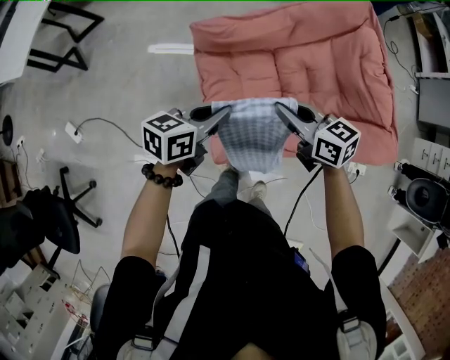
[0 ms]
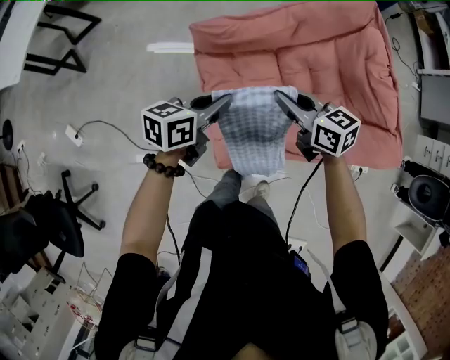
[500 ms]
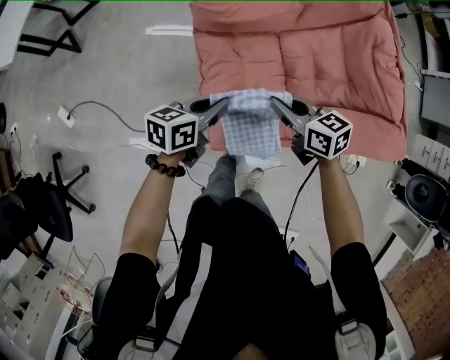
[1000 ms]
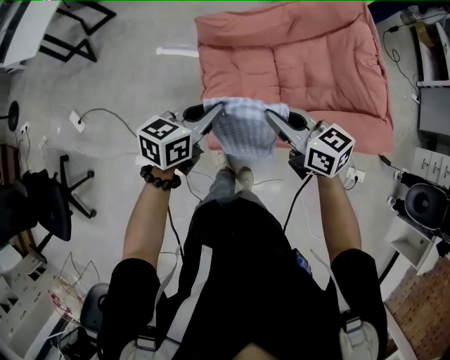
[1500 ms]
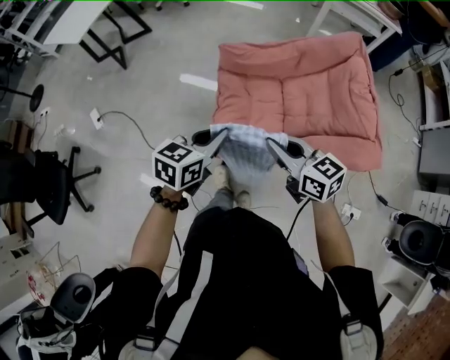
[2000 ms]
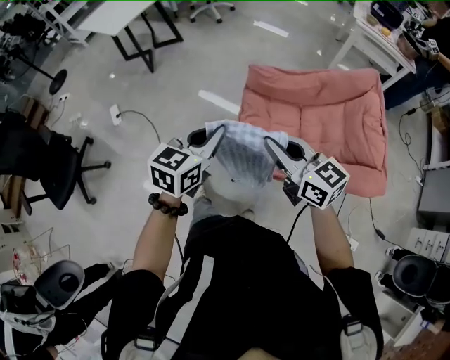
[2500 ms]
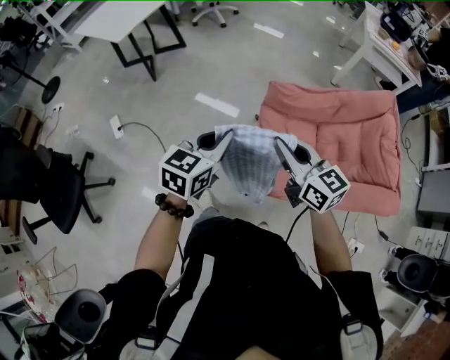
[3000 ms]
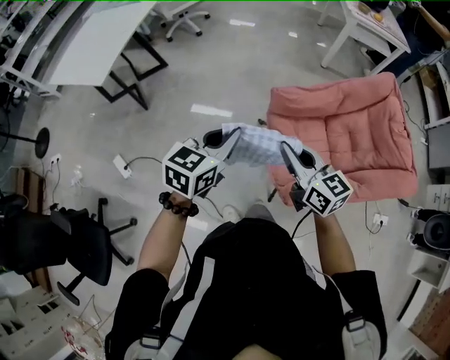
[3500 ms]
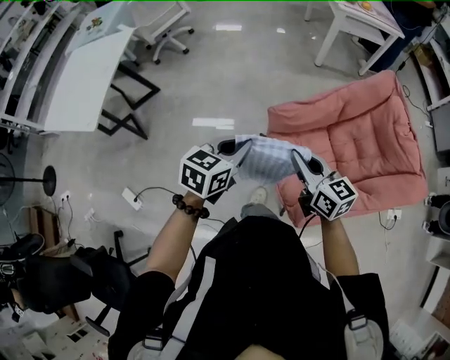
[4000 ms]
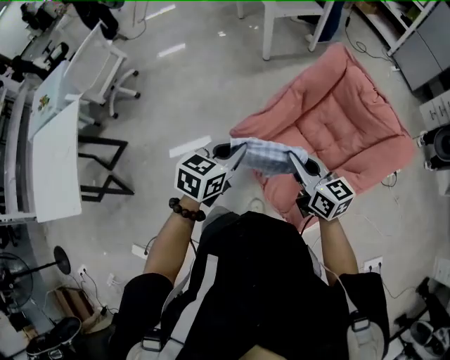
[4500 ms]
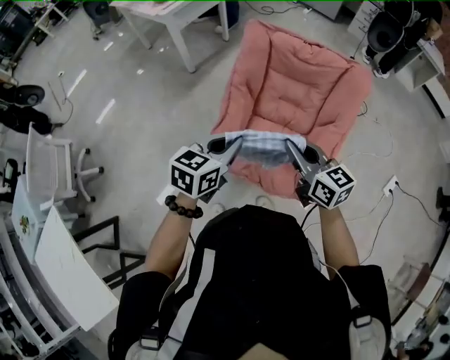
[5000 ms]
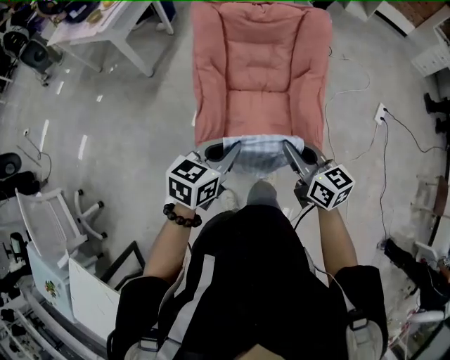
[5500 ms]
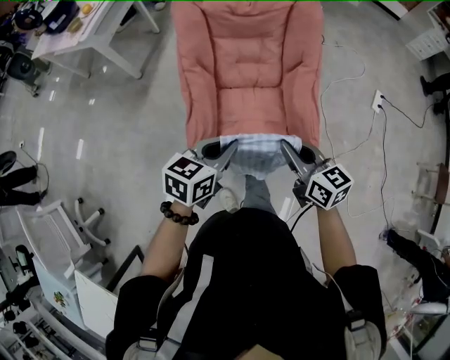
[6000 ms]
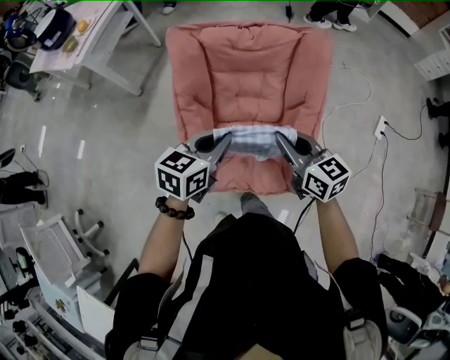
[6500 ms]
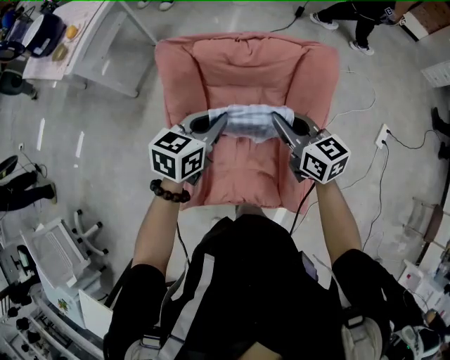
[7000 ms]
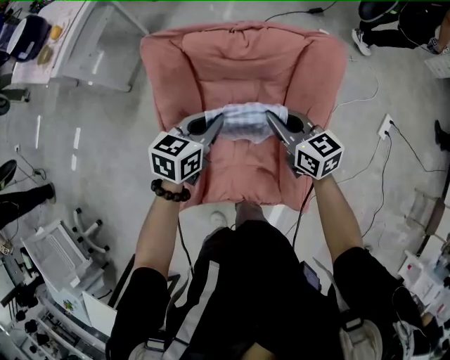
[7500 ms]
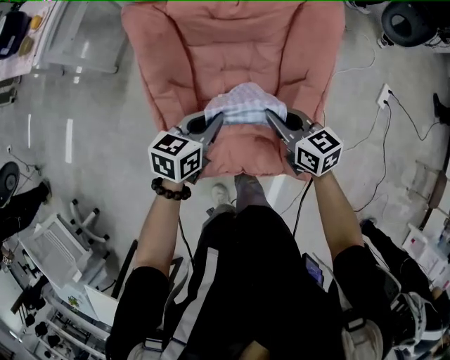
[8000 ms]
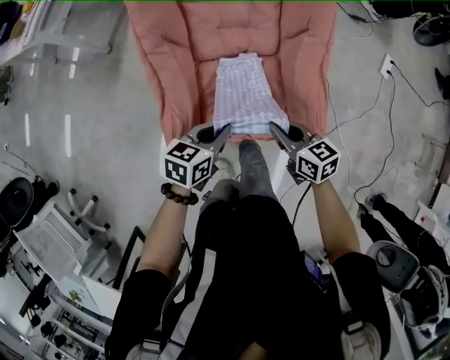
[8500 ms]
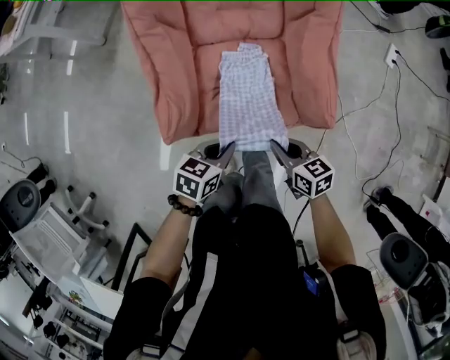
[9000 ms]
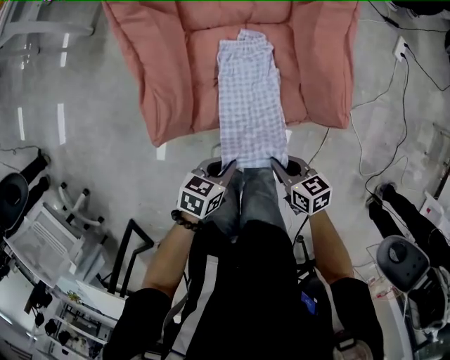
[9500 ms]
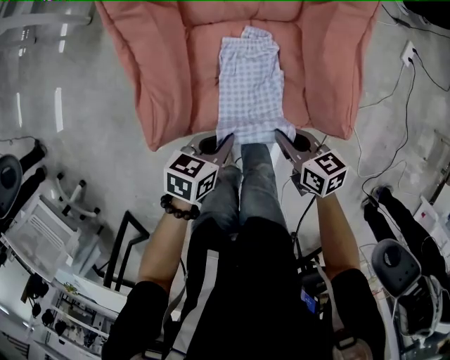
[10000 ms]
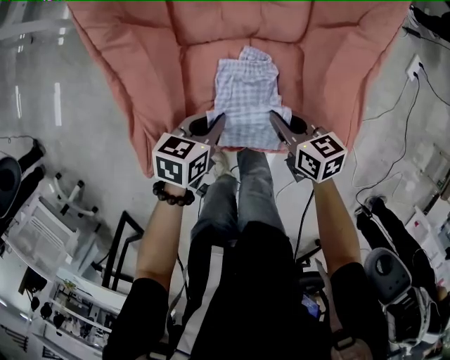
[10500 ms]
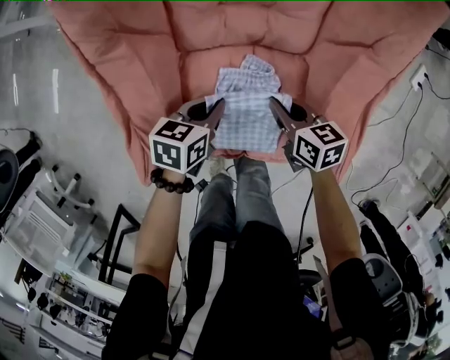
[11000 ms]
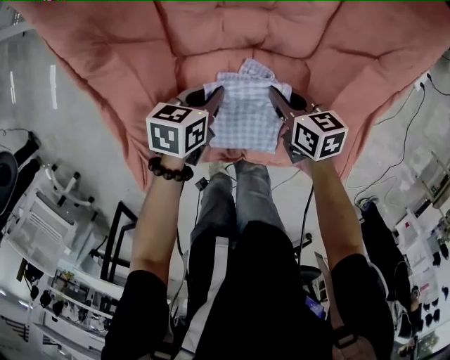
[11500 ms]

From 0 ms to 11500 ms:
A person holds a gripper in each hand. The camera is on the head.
From 0 ms to 2000 ms: The two grippers go approximately 20 cm backward and upward. The left gripper swivels about 20 degrees.
From 2000 ms to 4000 ms: The right gripper reaches about 10 cm upward, then returns, and turns by roughly 30 degrees; the left gripper shifts by about 40 cm.
From 4000 ms to 6000 ms: The right gripper turns by about 70 degrees, while the left gripper ends up roughly 20 cm from where it was, and swivels approximately 70 degrees.
From 6000 ms to 7500 ms: Both grippers travel together forward, some 40 cm.
From 7500 ms to 9500 ms: The two grippers travel together, backward, approximately 50 cm. The grippers both shift downward by some 30 cm. The right gripper swivels some 30 degrees. Meanwhile the left gripper rotates approximately 30 degrees.
From 9500 ms to 11500 ms: The grippers both shift forward by roughly 35 cm.

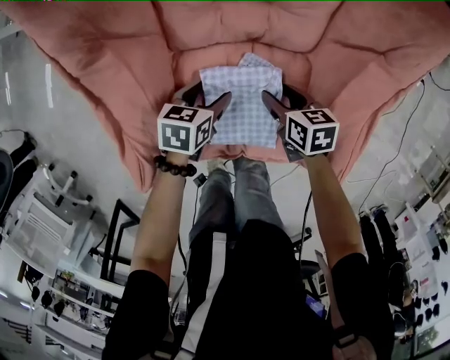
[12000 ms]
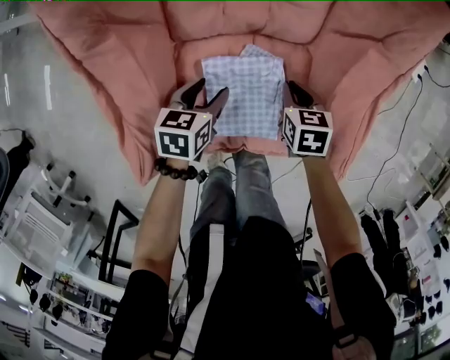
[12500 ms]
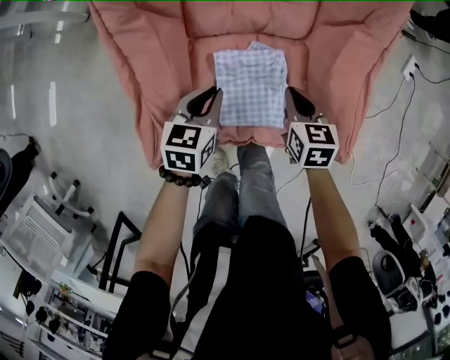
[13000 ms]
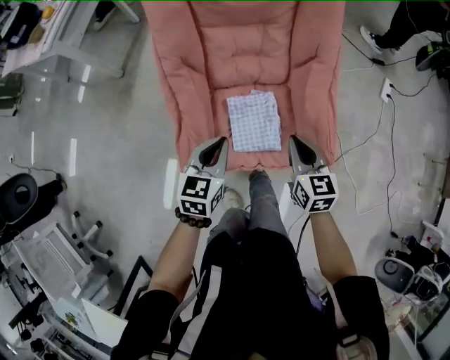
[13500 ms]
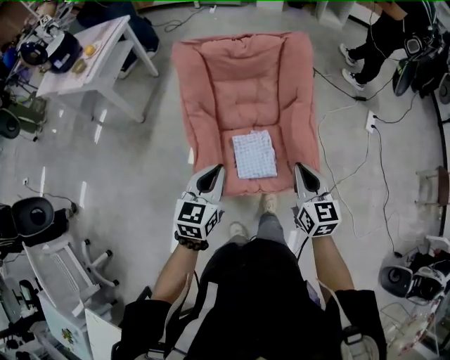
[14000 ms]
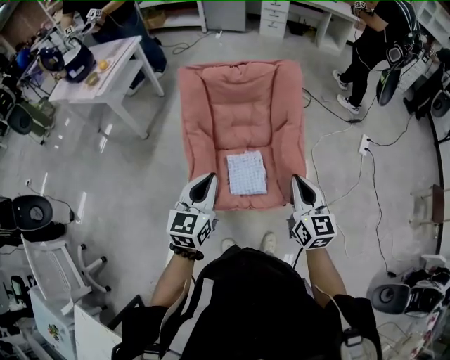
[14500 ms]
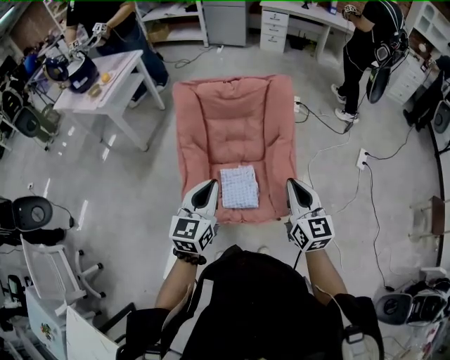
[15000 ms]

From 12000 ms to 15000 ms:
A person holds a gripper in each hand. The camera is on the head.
From 12000 ms to 13500 ms: The grippers both shift upward and backward by about 35 cm. The right gripper changes its angle by some 40 degrees, and closes its fingers, while the left gripper changes its angle by about 40 degrees, and closes.
From 13500 ms to 15000 ms: Both grippers travel together upward, about 30 cm. The left gripper swivels about 20 degrees, while the right gripper rotates approximately 20 degrees.

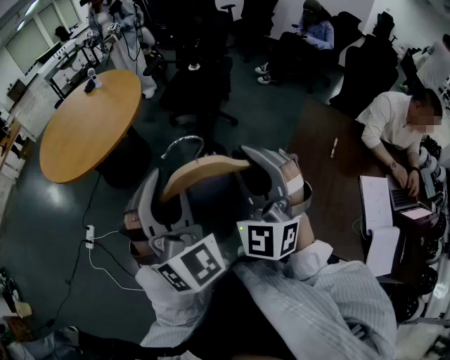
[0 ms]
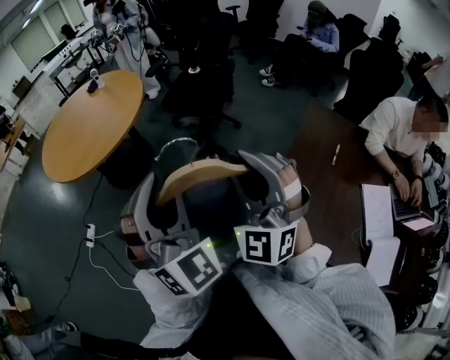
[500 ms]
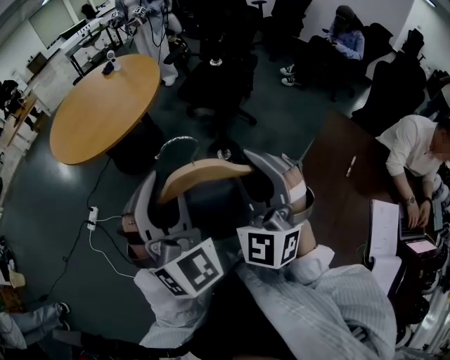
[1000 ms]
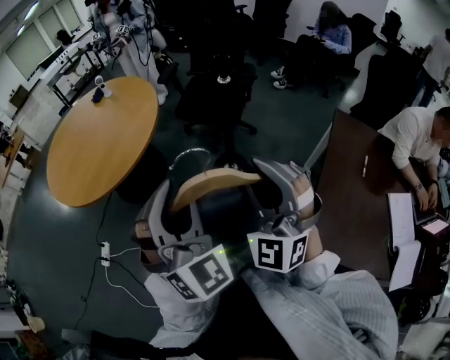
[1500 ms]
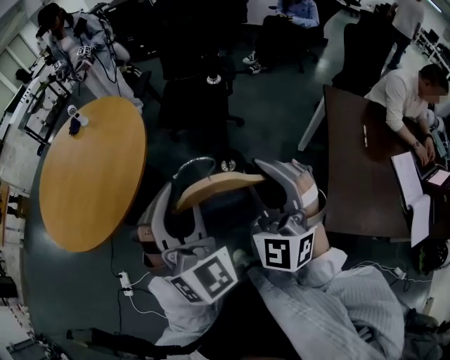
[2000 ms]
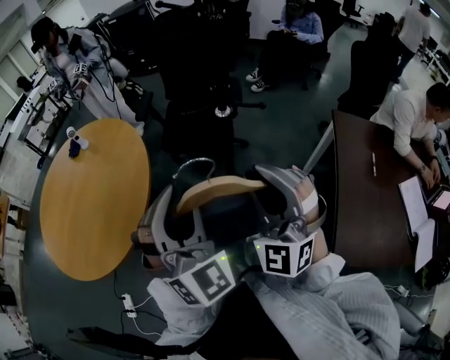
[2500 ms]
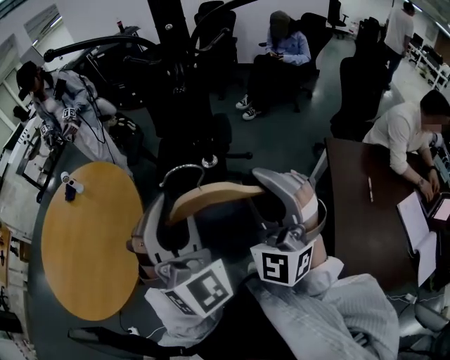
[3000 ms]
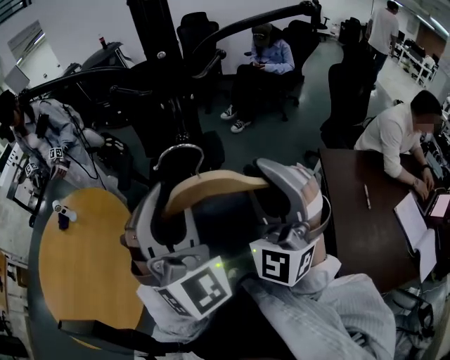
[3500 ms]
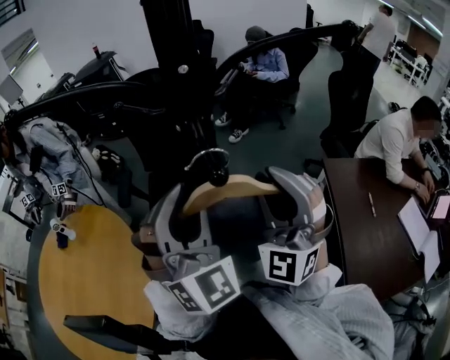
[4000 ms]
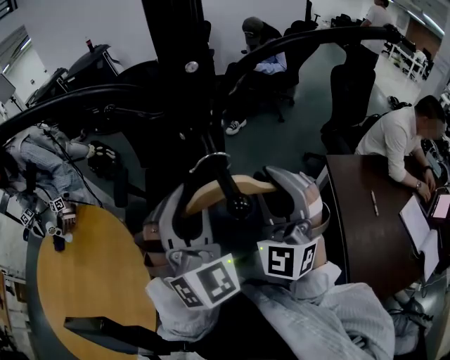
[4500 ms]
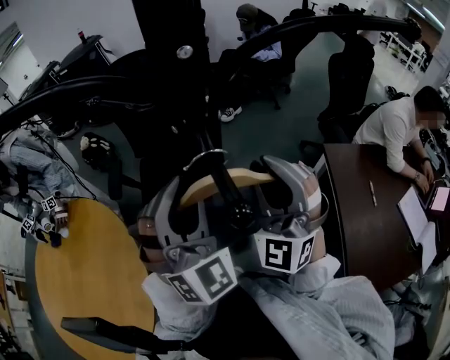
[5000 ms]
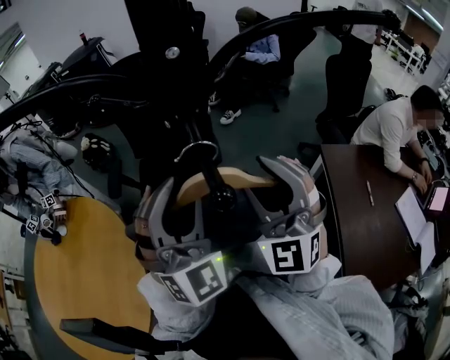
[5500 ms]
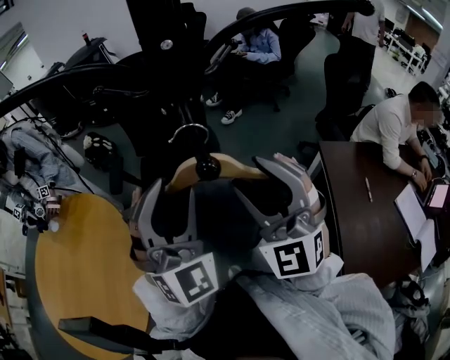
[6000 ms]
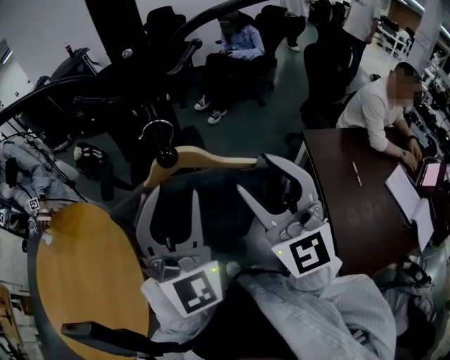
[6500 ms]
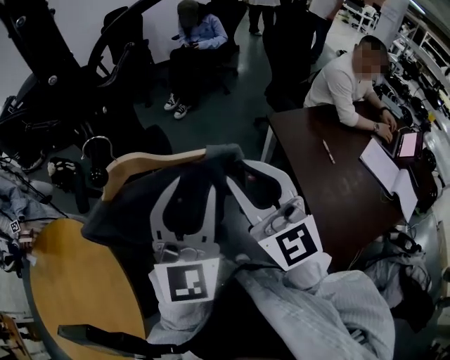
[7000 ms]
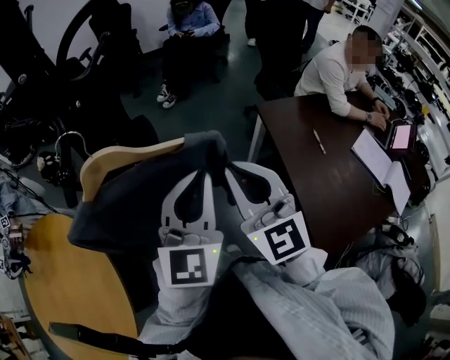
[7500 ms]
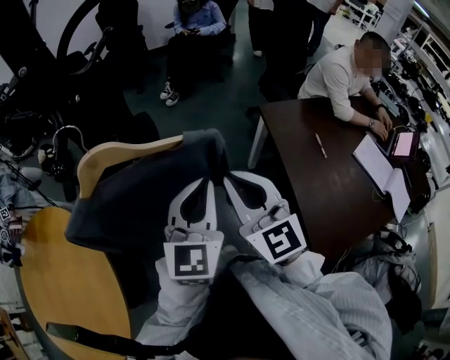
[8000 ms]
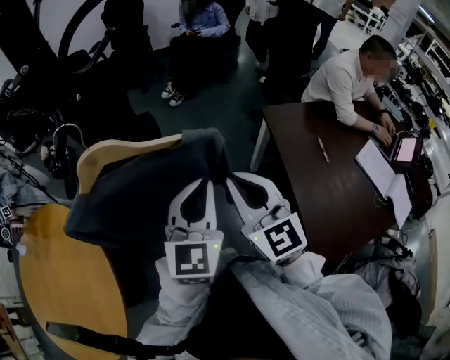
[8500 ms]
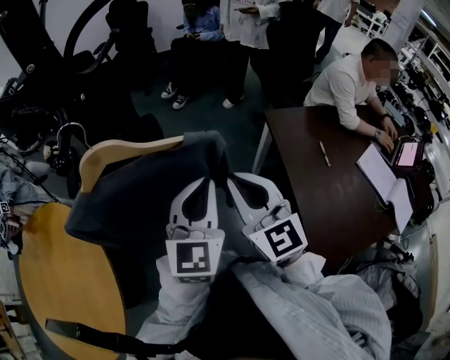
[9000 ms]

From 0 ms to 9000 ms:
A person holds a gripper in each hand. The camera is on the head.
From 0 ms to 2000 ms: The pair of grippers is taken forward and to the left, approximately 40 cm.
From 2000 ms to 4500 ms: Both grippers are carried forward, roughly 60 cm. The right gripper rotates some 20 degrees.
From 4500 ms to 7000 ms: Both grippers travel together to the right and backward, roughly 20 cm. The right gripper twists approximately 40 degrees clockwise, seen from behind, and opens and closes again, while the left gripper rotates about 40 degrees.
From 7000 ms to 9000 ms: The two grippers go about 10 cm downward. The left gripper closes its fingers. Meanwhile the right gripper closes its fingers.

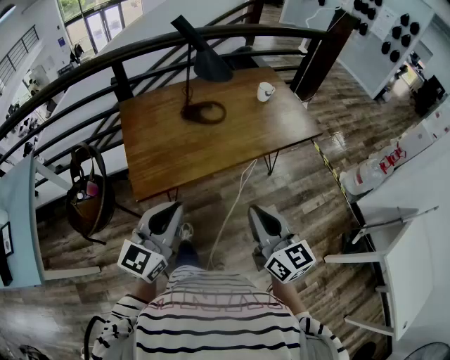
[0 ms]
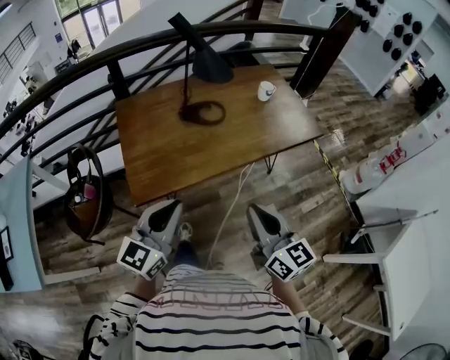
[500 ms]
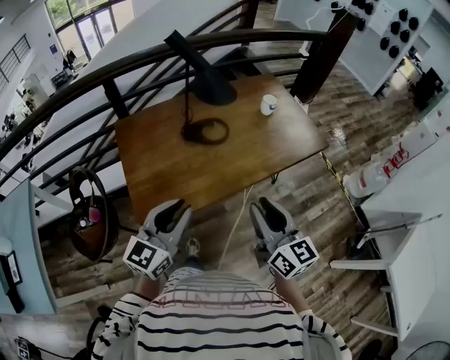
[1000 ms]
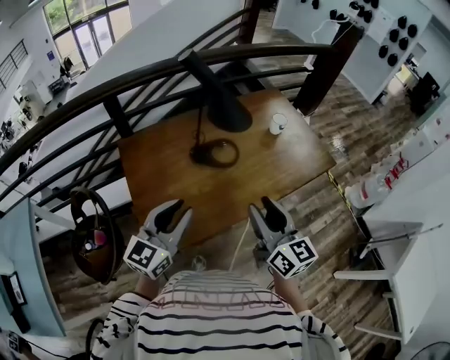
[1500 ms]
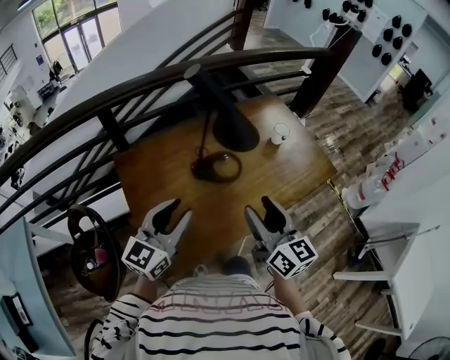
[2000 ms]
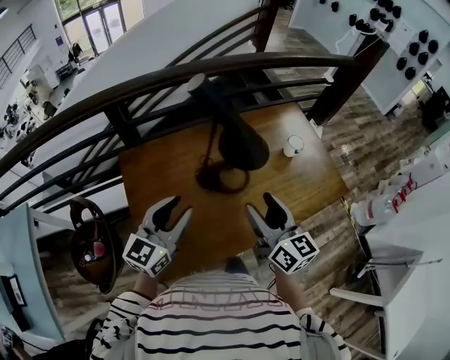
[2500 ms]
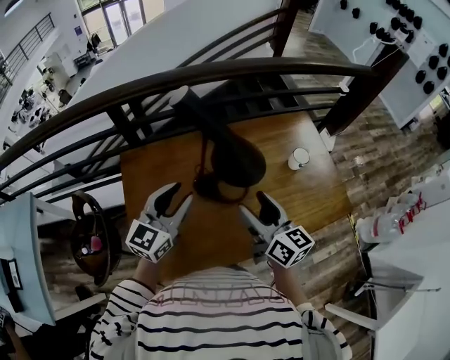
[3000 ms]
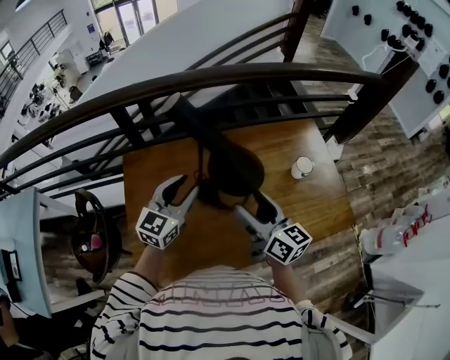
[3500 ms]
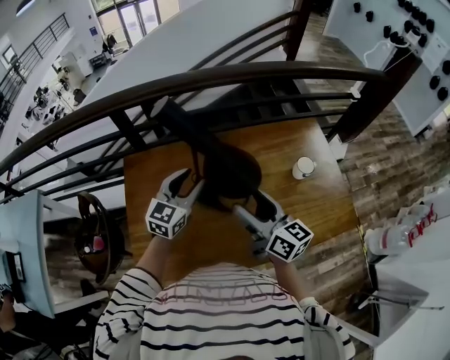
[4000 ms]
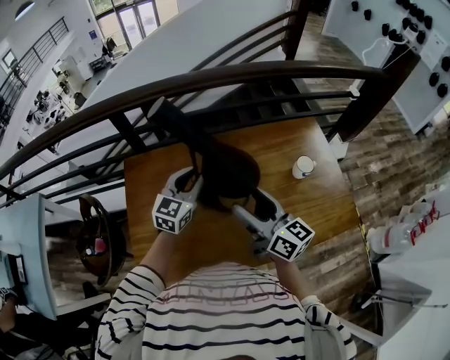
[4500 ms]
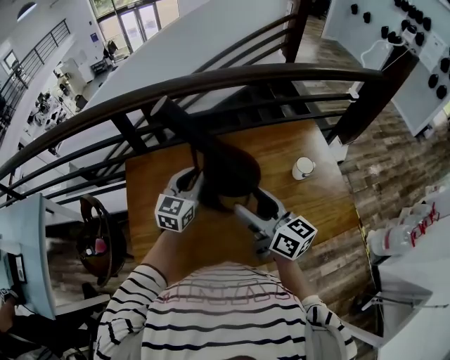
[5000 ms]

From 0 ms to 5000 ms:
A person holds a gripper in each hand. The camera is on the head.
From 0 ms to 2500 ms: Both grippers are carried forward, some 40 cm. The left gripper opens up. The right gripper opens its fingers.
From 2500 ms to 5000 ms: The right gripper goes about 10 cm forward and to the right, and rotates approximately 20 degrees; the left gripper is displaced forward and to the right by approximately 20 cm, and closes.
